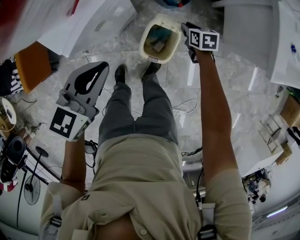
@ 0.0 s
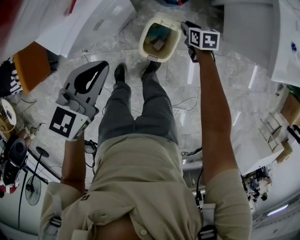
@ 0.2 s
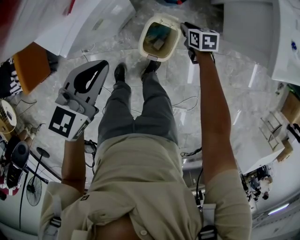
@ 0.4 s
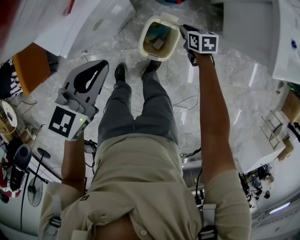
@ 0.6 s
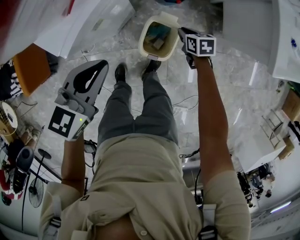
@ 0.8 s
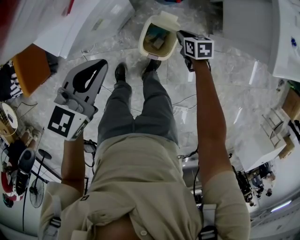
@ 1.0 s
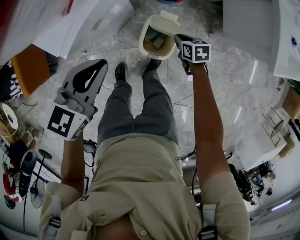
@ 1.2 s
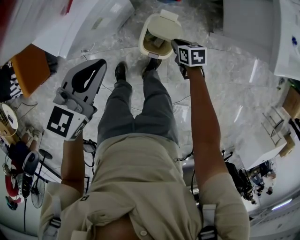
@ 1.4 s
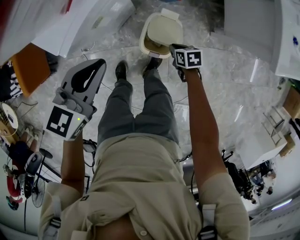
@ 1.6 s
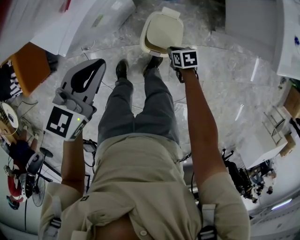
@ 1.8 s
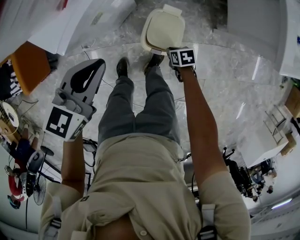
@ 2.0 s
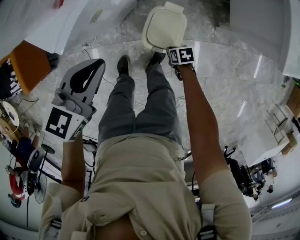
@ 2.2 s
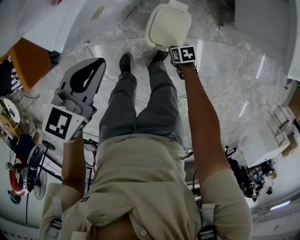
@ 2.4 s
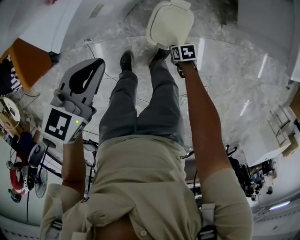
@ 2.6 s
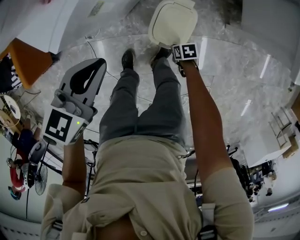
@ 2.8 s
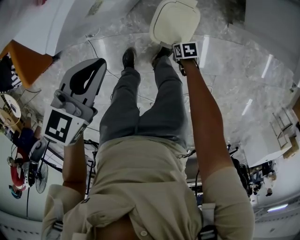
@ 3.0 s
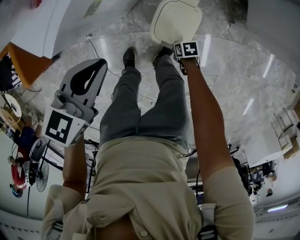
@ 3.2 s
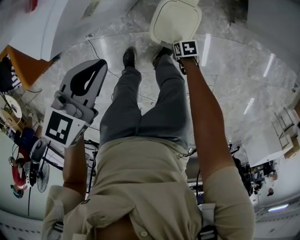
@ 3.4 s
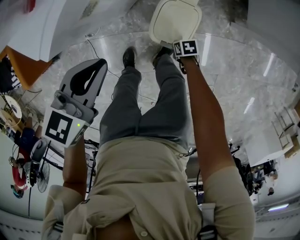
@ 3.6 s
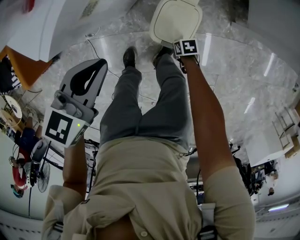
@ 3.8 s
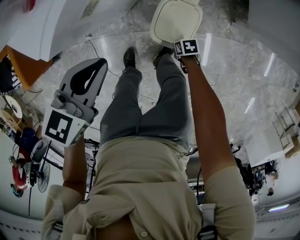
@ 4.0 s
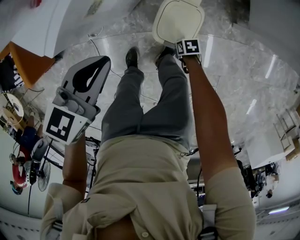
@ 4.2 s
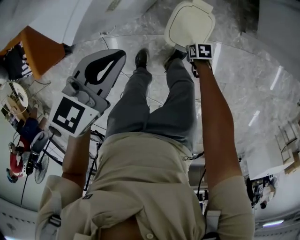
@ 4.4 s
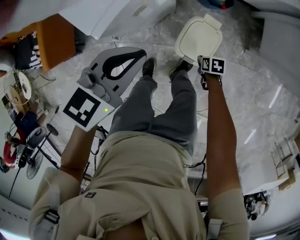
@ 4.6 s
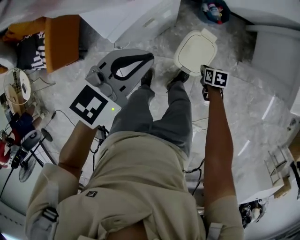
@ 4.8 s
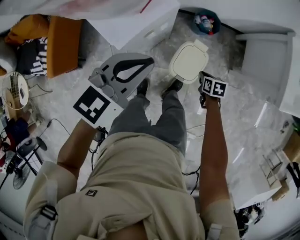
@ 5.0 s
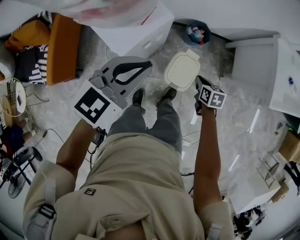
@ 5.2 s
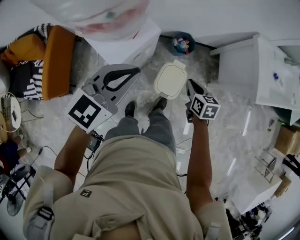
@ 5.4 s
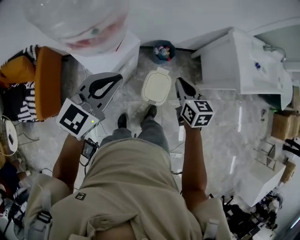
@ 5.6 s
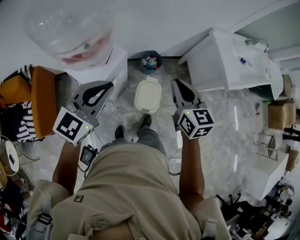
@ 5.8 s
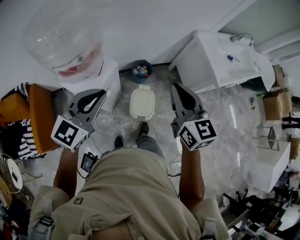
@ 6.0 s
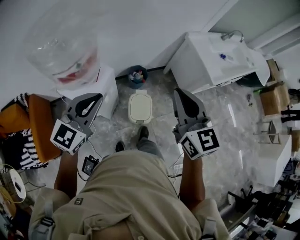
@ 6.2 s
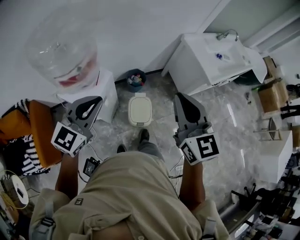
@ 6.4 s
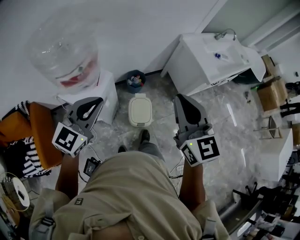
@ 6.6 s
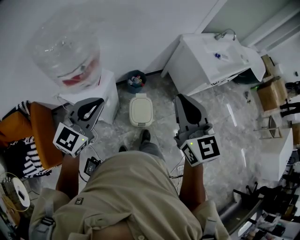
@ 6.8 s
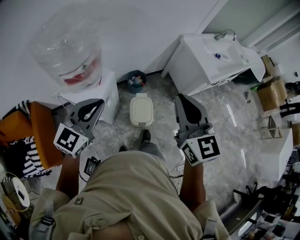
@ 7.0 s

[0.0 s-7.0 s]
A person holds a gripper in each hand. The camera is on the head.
0.0 to 1.4 s: The right gripper moves backward, about 10 cm.
1.4 to 2.8 s: The left gripper heads downward, covering about 5 cm, while the right gripper moves downward, some 15 cm.
2.8 to 4.2 s: The grippers move only a little.
4.2 to 5.6 s: The left gripper moves upward, roughly 30 cm, and changes its angle by roughly 30 degrees; the right gripper moves upward, approximately 60 cm, and tips its fingers upward by approximately 30 degrees.
5.6 to 7.0 s: The right gripper shifts roughly 35 cm upward and backward, and swivels some 40 degrees, while the left gripper heads upward and backward, covering about 10 cm.

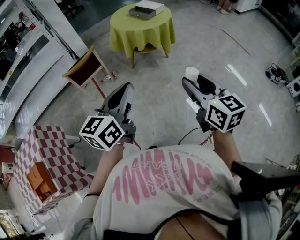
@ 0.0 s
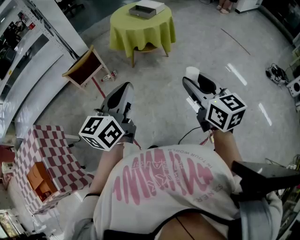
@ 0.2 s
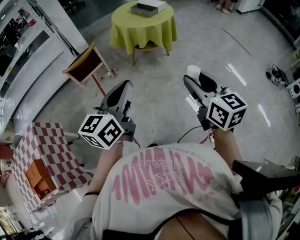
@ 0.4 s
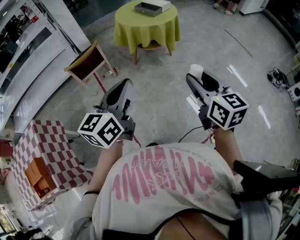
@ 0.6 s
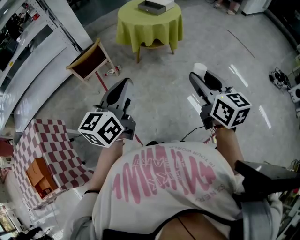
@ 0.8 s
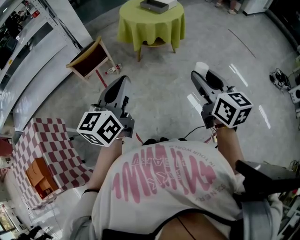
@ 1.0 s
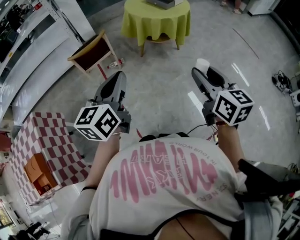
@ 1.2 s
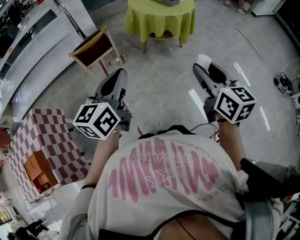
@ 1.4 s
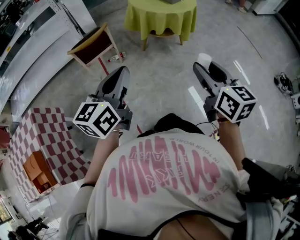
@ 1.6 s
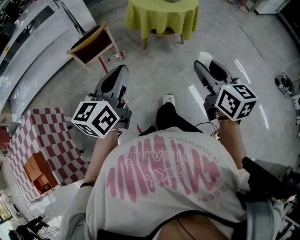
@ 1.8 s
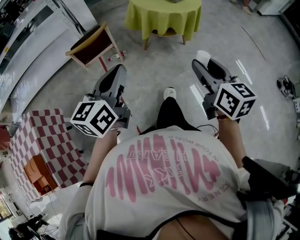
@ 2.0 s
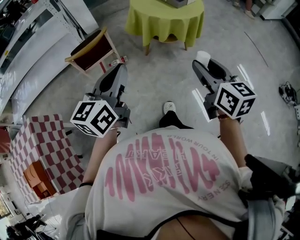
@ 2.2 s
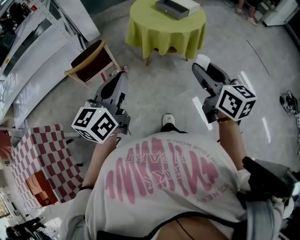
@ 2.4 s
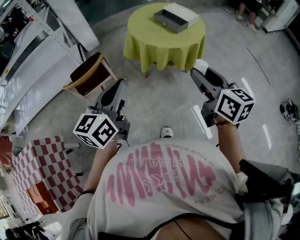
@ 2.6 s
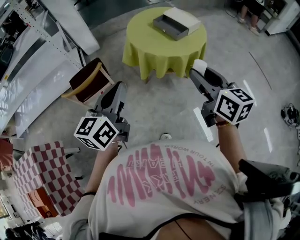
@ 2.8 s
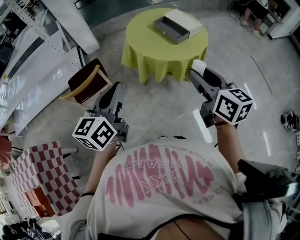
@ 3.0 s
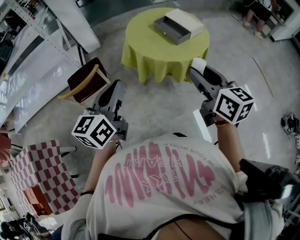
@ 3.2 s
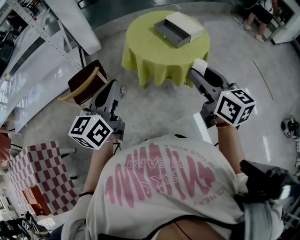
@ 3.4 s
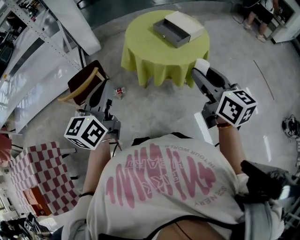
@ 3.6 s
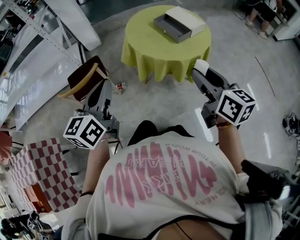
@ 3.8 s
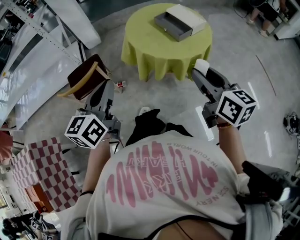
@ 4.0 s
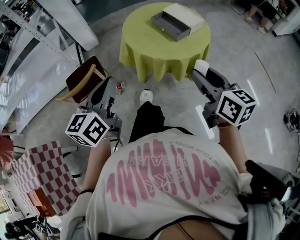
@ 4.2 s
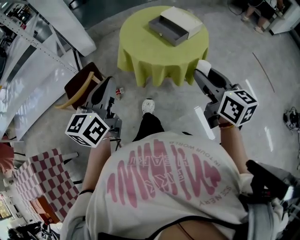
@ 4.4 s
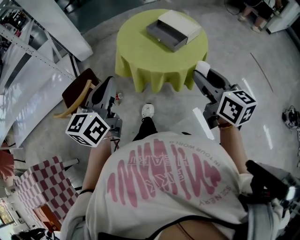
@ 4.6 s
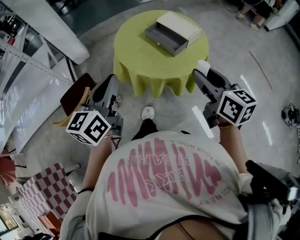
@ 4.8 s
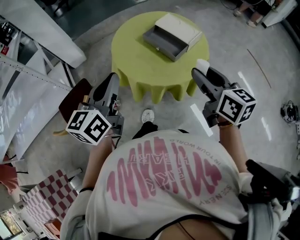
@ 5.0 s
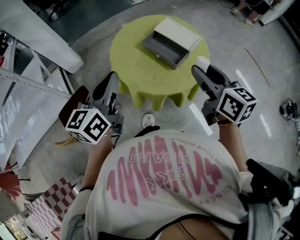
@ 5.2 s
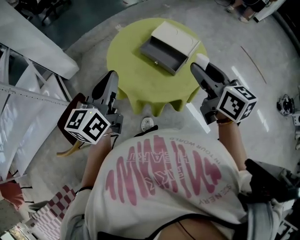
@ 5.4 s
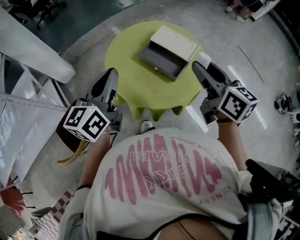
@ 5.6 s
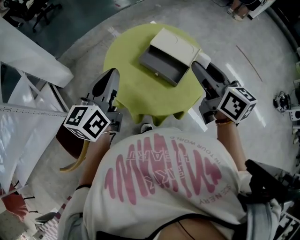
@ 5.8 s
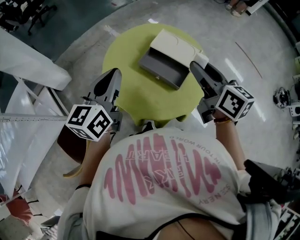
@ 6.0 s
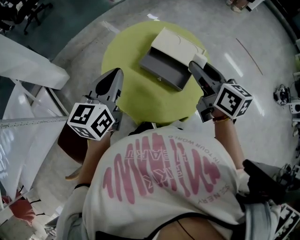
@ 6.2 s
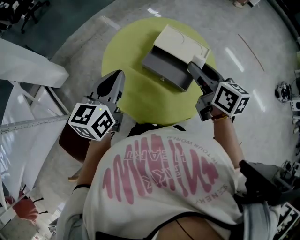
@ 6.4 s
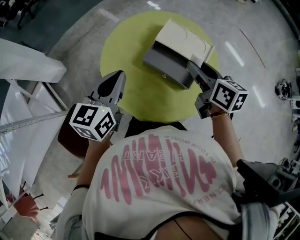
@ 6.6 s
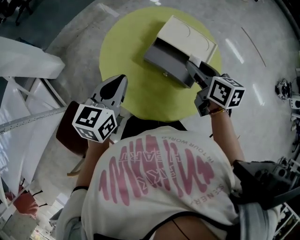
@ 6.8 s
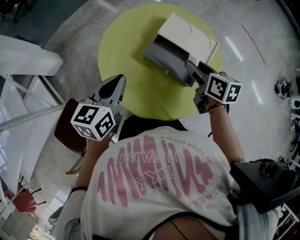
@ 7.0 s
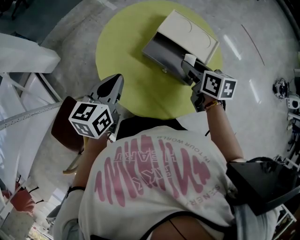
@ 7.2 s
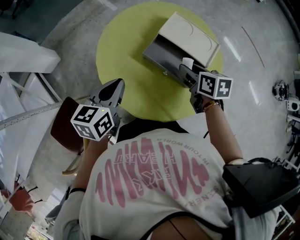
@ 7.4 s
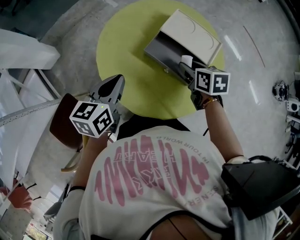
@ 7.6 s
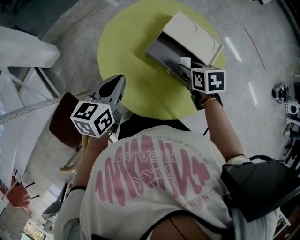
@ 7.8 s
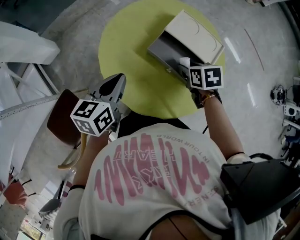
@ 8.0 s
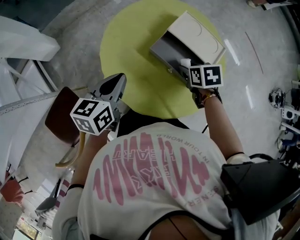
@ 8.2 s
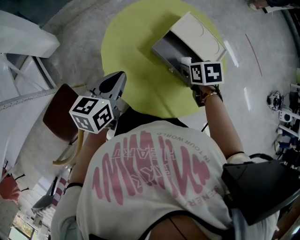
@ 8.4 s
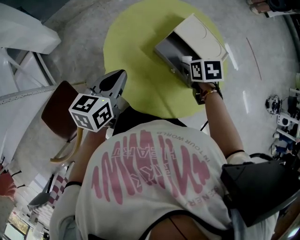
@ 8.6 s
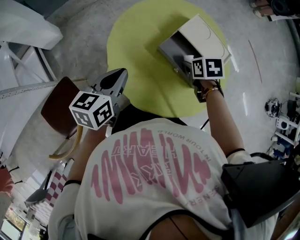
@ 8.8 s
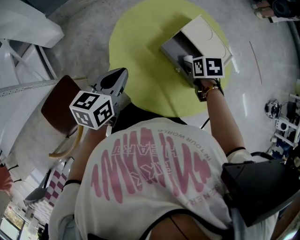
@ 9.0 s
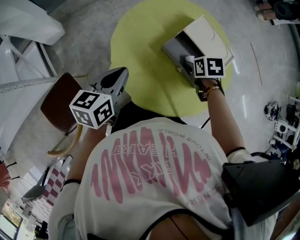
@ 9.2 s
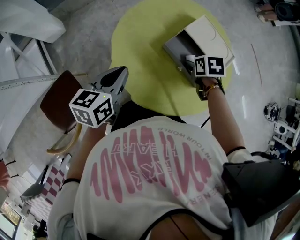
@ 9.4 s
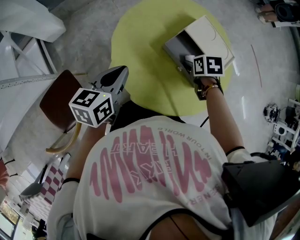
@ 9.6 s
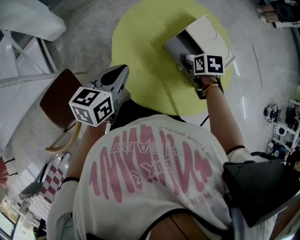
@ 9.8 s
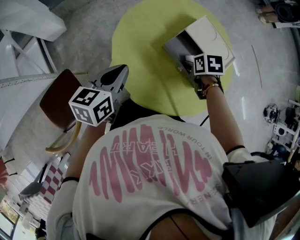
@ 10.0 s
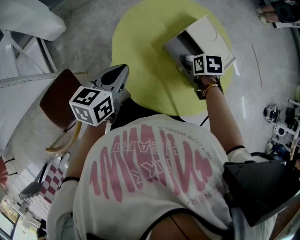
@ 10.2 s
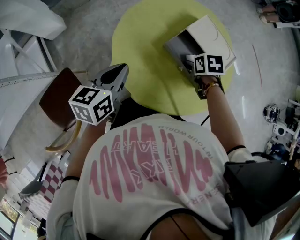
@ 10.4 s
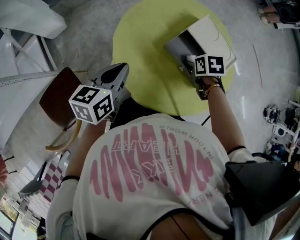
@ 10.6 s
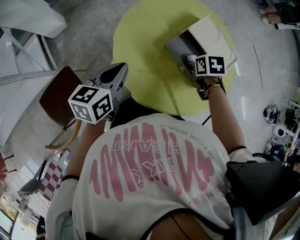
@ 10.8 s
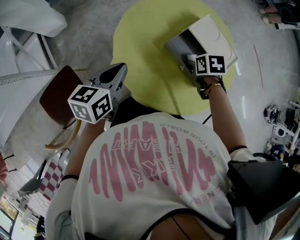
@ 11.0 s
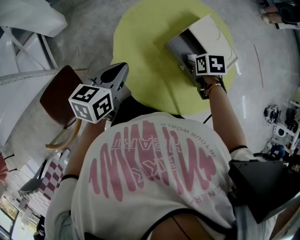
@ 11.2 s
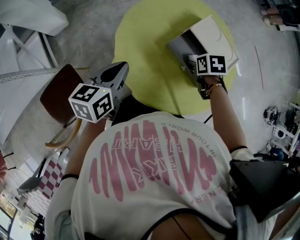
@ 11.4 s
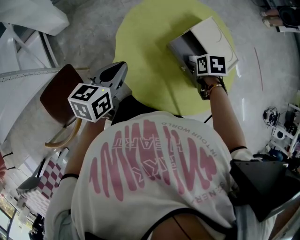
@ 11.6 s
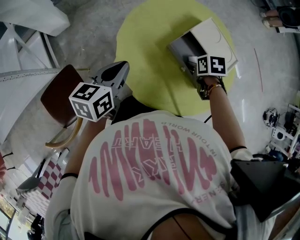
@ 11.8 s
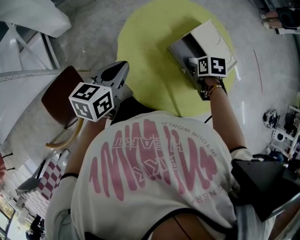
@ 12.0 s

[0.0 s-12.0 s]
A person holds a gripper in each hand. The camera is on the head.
0.0 to 1.6 s: The two grippers go roughly 15 cm to the left and forward.
1.6 to 3.0 s: The two grippers go about 40 cm forward.
3.0 to 4.4 s: The grippers both shift forward by approximately 5 cm.
4.4 to 6.0 s: Both grippers move forward, roughly 35 cm.
6.0 to 7.6 s: Both grippers move downward, some 20 cm. The right gripper tilts its fingers roughly 40 degrees downward, while the left gripper swivels about 20 degrees.
7.6 to 9.0 s: The right gripper shifts by roughly 5 cm, and swivels roughly 20 degrees.
9.0 to 12.0 s: There are only small adjustments of the grippers.

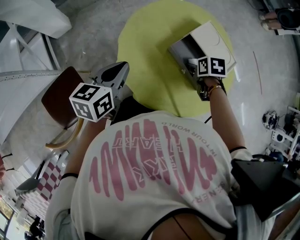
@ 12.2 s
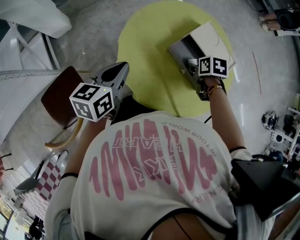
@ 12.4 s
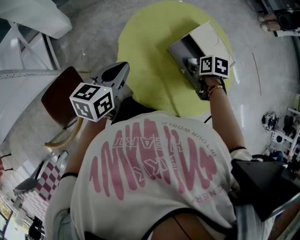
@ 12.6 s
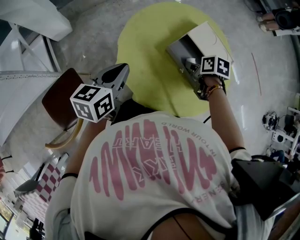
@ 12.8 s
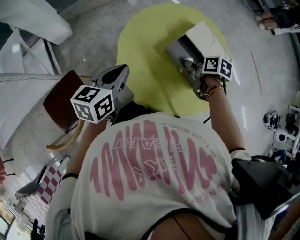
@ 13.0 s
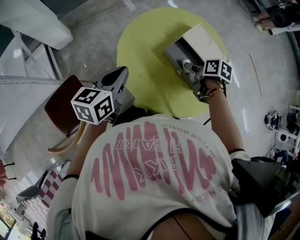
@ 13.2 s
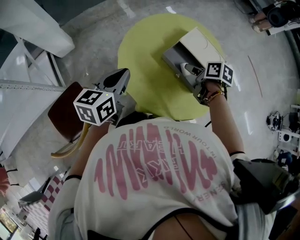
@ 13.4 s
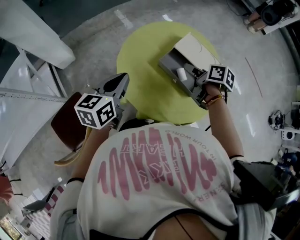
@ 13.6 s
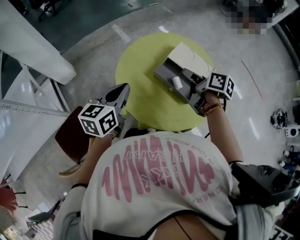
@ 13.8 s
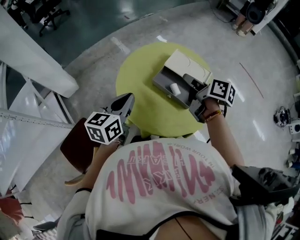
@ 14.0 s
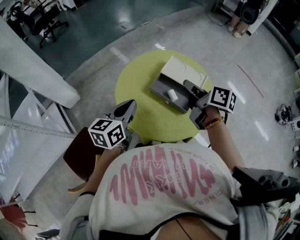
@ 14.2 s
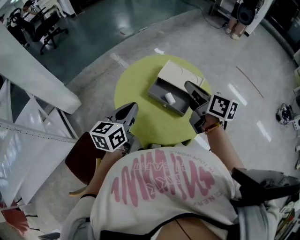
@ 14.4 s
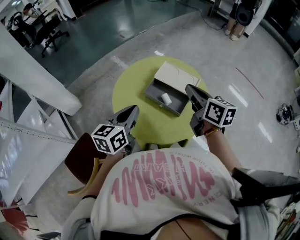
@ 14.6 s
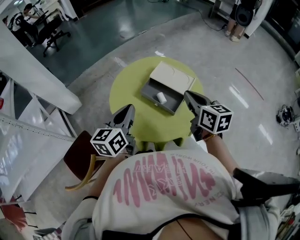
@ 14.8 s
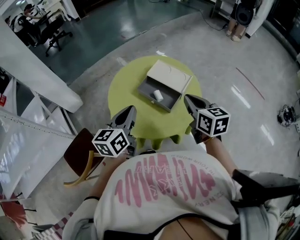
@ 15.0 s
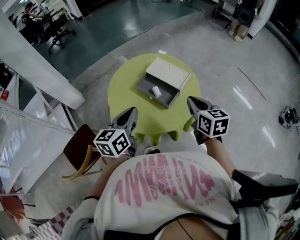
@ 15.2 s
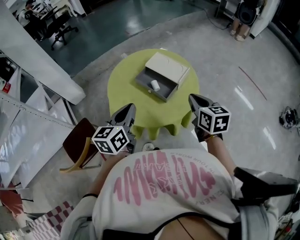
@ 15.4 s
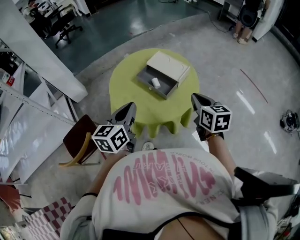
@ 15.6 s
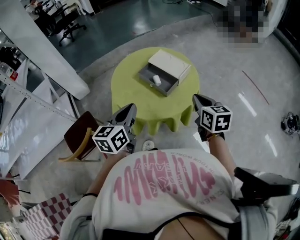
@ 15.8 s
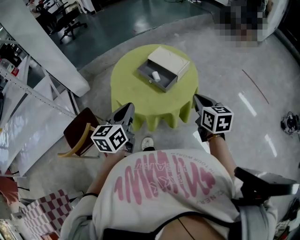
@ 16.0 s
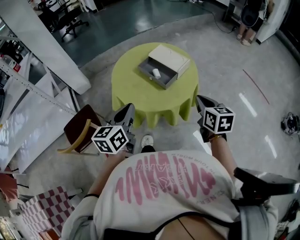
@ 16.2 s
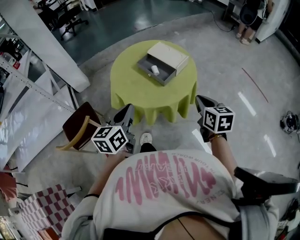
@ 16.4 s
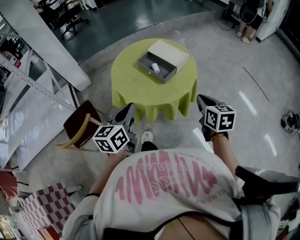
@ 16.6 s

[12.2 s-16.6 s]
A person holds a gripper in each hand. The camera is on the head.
12.2 to 13.6 s: The left gripper shifts about 5 cm upward. The right gripper shifts some 10 cm upward, and tips its fingers upward by about 30 degrees.
13.6 to 15.2 s: The left gripper shifts some 20 cm to the right, backward and upward. Meanwhile the right gripper travels backward, to the right and upward by roughly 25 cm, swivels about 40 degrees, and closes up.
15.2 to 16.6 s: The right gripper travels backward and to the right by some 15 cm; the left gripper is displaced backward by approximately 15 cm.
